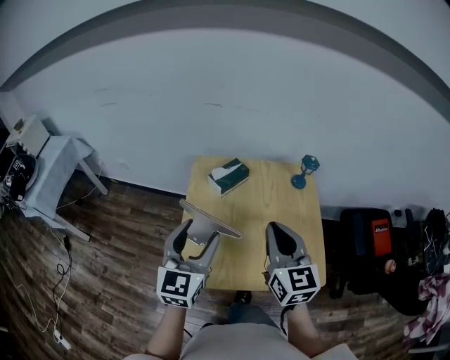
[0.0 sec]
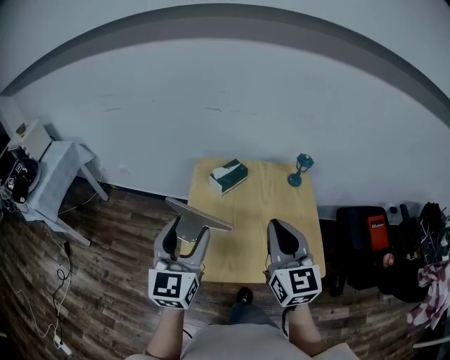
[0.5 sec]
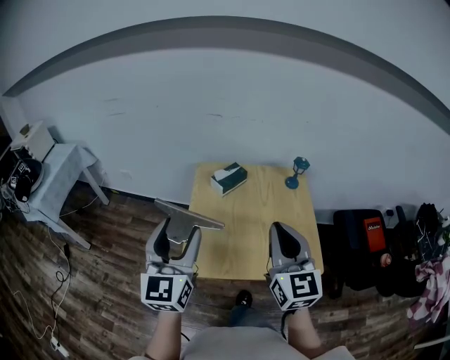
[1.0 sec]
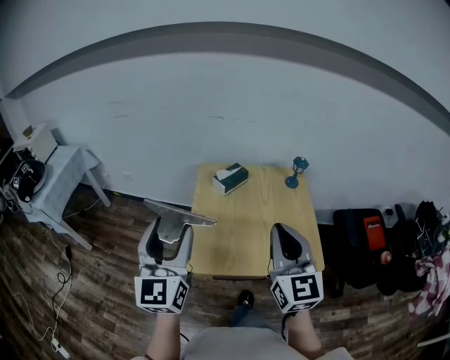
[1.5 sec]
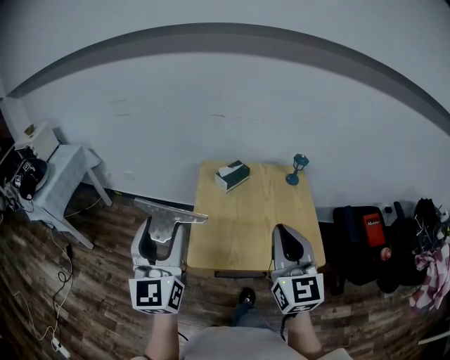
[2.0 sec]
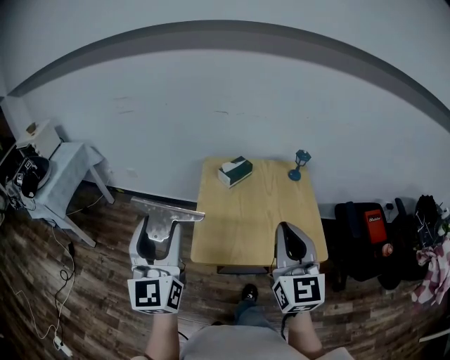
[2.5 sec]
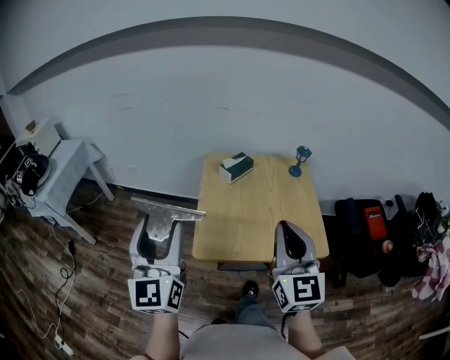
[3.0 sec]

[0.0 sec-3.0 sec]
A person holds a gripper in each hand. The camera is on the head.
0.0 sec to 1.5 sec: The right gripper goes roughly 15 cm backward and upward. The left gripper heads backward, upward and to the left, covering about 20 cm.
1.5 sec to 3.0 sec: The right gripper heads backward, covering roughly 5 cm. The left gripper moves to the left and backward, roughly 10 cm.

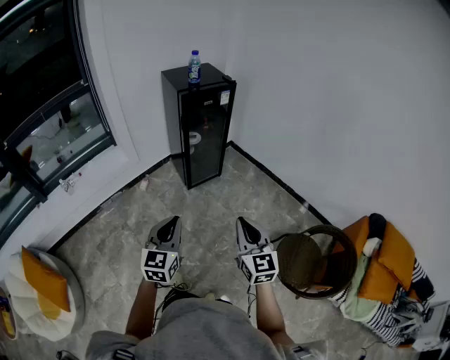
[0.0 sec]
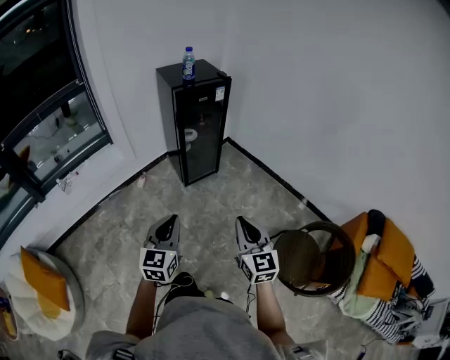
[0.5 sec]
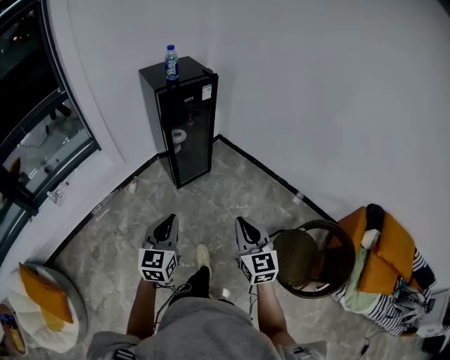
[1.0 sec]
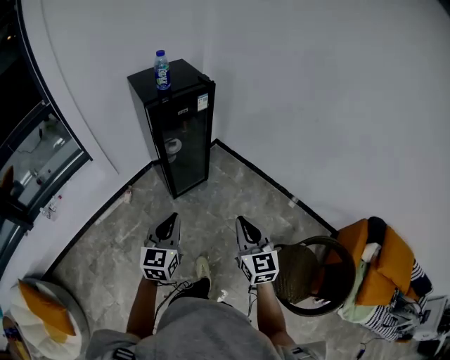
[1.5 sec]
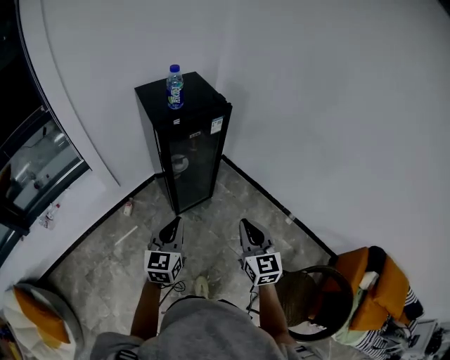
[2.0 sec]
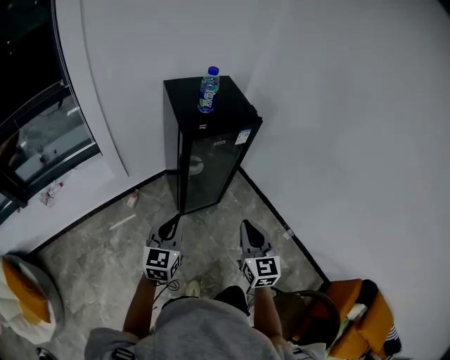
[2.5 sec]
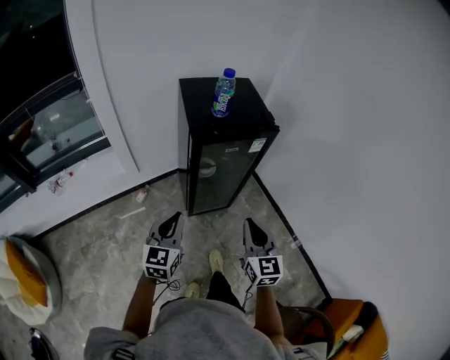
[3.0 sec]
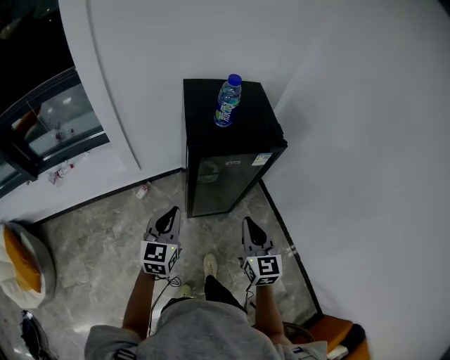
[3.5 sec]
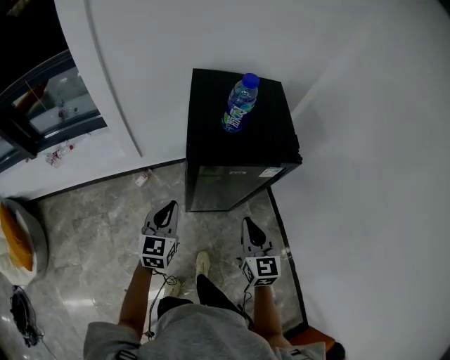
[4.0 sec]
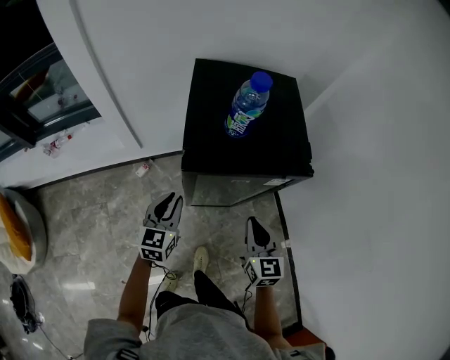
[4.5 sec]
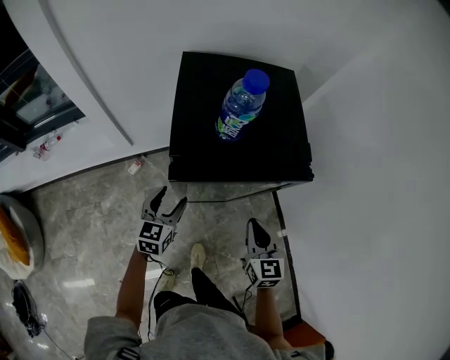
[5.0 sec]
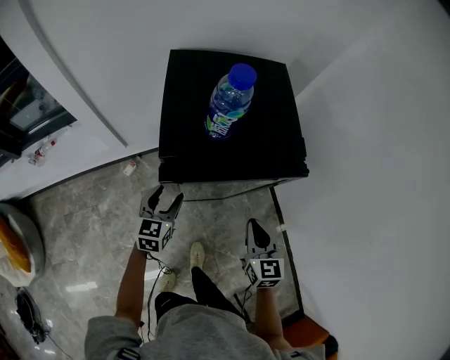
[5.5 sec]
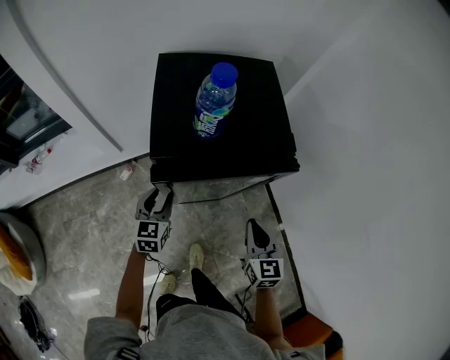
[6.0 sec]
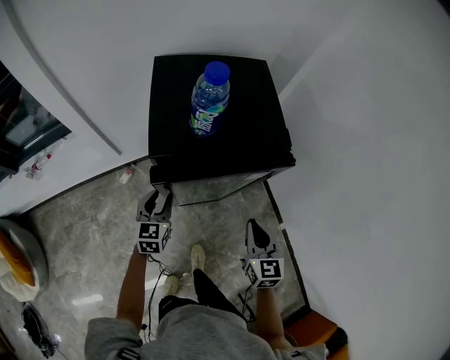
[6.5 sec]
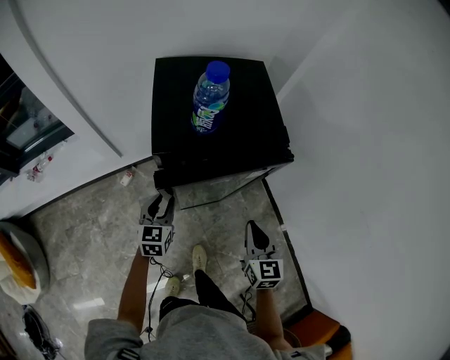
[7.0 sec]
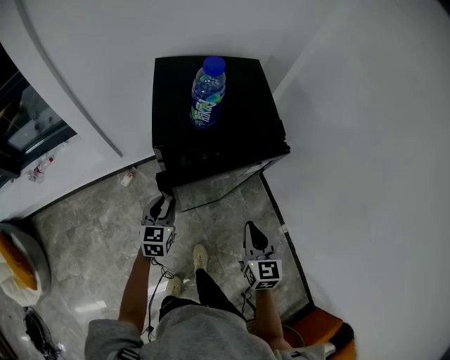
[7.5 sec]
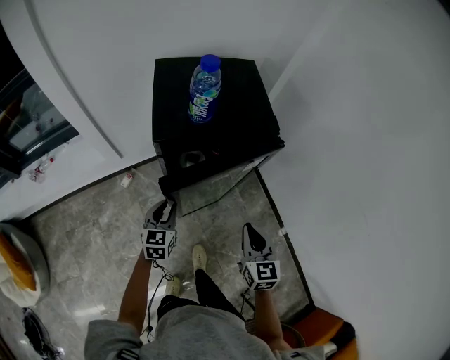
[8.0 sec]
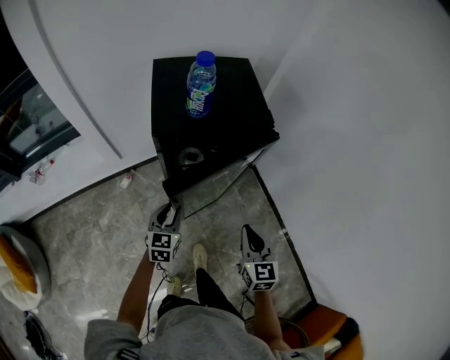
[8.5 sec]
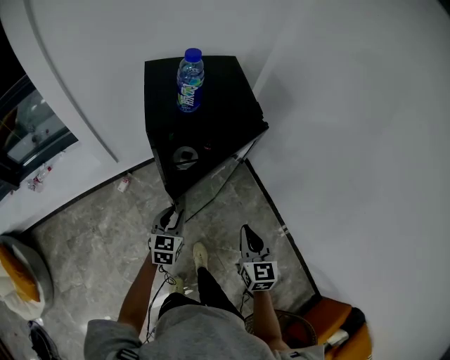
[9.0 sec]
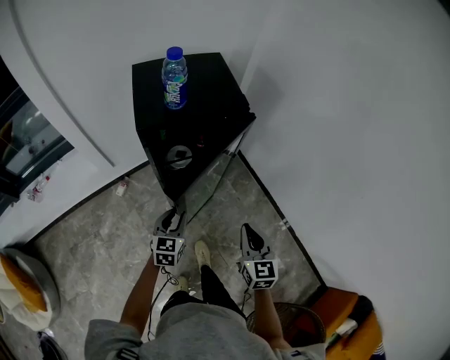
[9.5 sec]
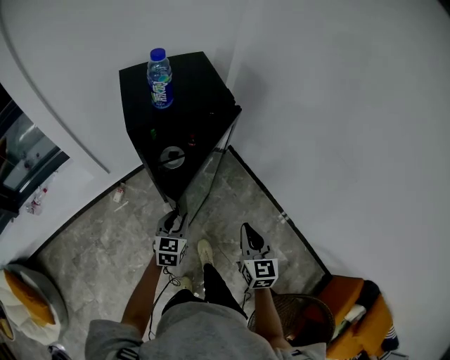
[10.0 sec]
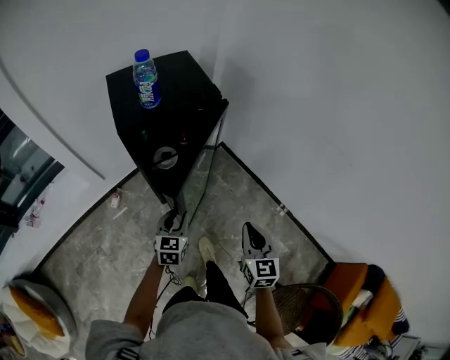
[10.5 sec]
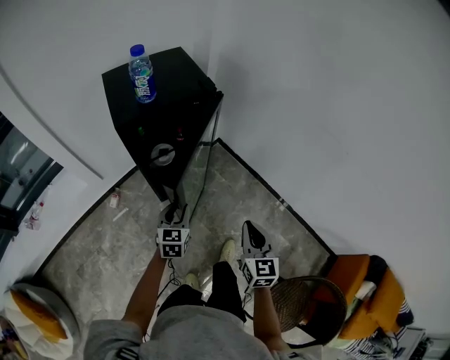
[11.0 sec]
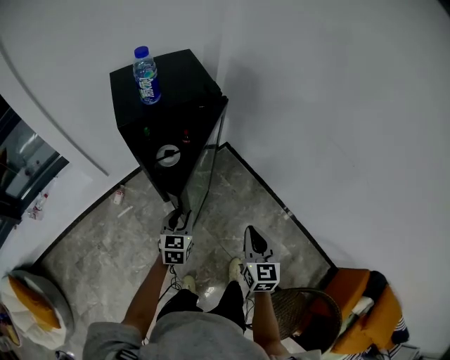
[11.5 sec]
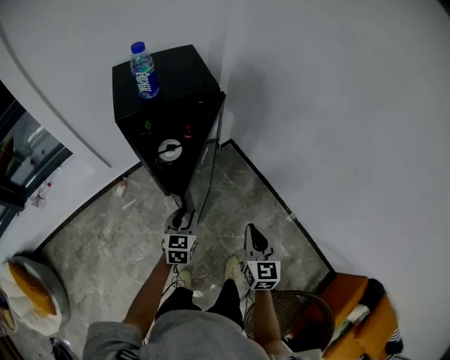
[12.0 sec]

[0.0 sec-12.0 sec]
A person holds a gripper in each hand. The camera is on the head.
0.0 sec to 2.0 sec: The grippers both shift forward by roughly 35 cm.
2.0 sec to 4.0 sec: The left gripper changes place by approximately 25 cm, and swivels about 30 degrees. The right gripper shifts by roughly 30 cm, and turns by roughly 20 degrees.
4.0 sec to 6.0 sec: The left gripper is displaced forward and downward by some 15 cm, and opens its fingers. Meanwhile the right gripper travels to the right, downward and forward by roughly 10 cm.
6.0 sec to 8.0 sec: The two grippers go about 10 cm backward.
8.0 sec to 10.0 sec: The left gripper heads backward and to the right, covering roughly 15 cm; the right gripper travels backward by some 15 cm.
10.0 sec to 12.0 sec: The two grippers go about 10 cm to the right.

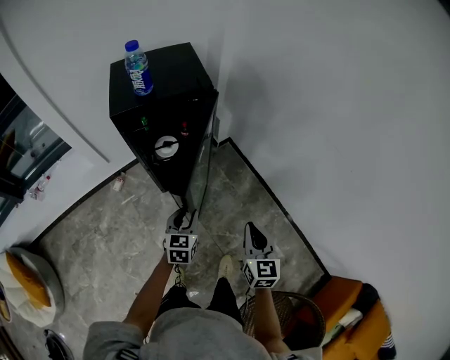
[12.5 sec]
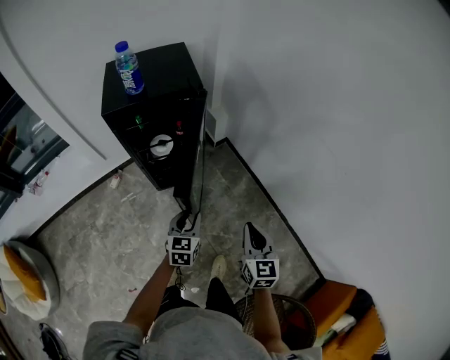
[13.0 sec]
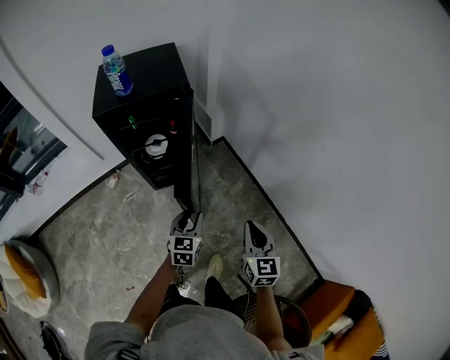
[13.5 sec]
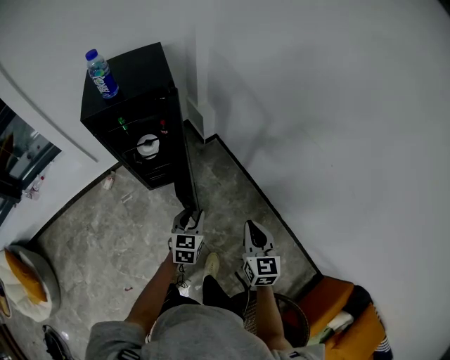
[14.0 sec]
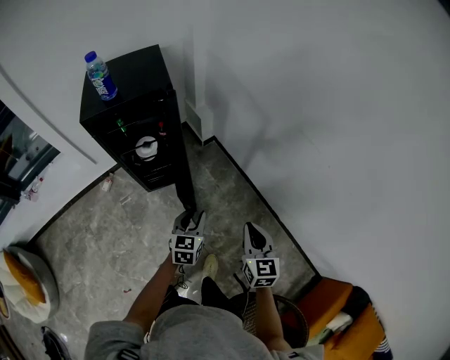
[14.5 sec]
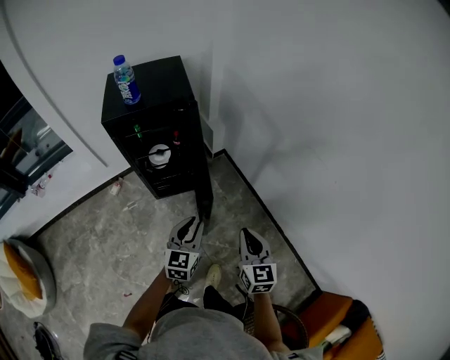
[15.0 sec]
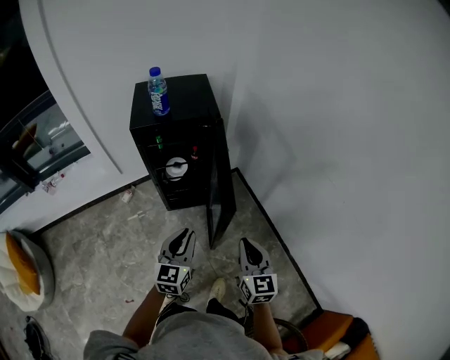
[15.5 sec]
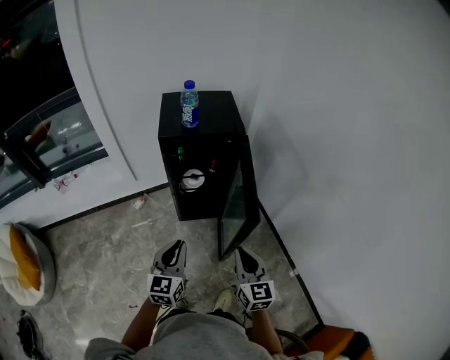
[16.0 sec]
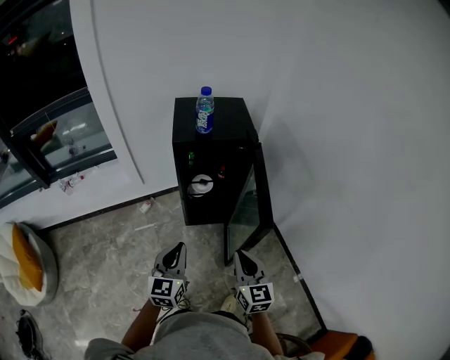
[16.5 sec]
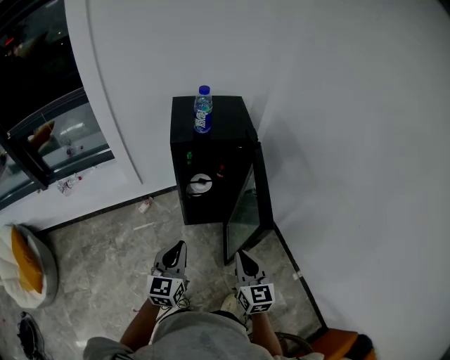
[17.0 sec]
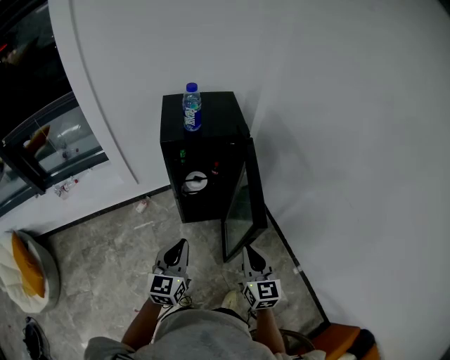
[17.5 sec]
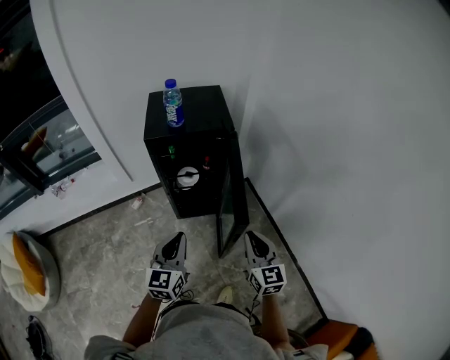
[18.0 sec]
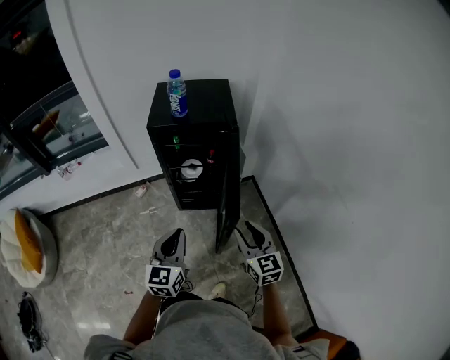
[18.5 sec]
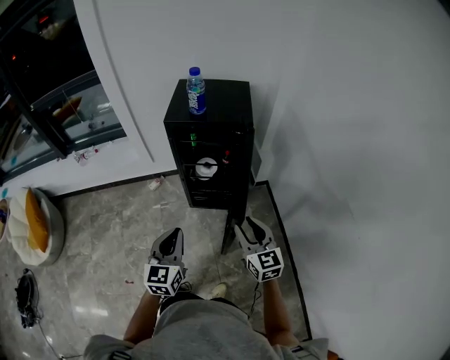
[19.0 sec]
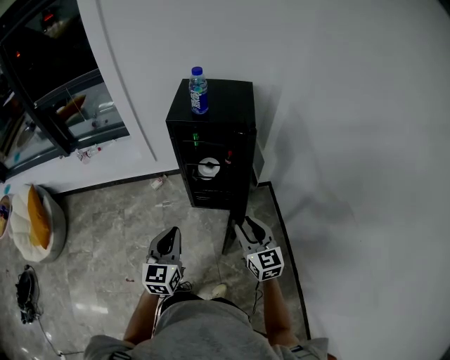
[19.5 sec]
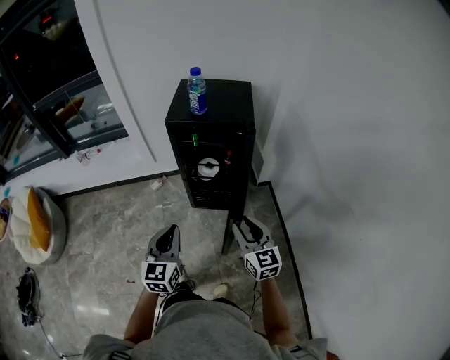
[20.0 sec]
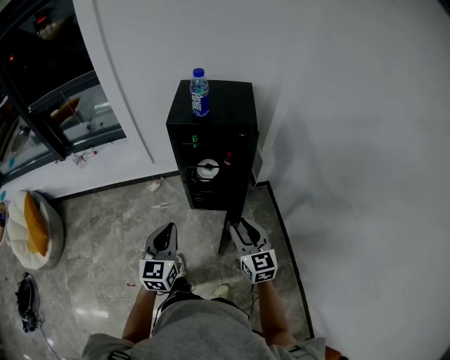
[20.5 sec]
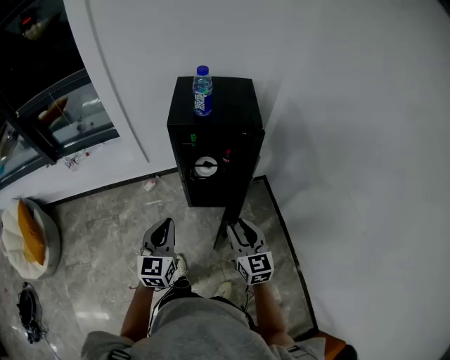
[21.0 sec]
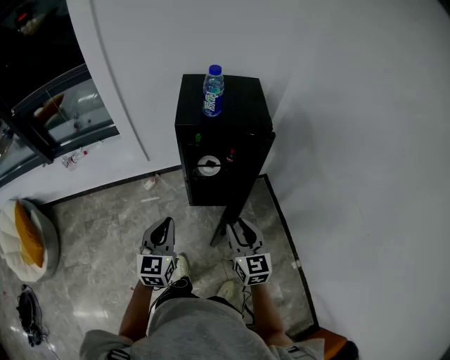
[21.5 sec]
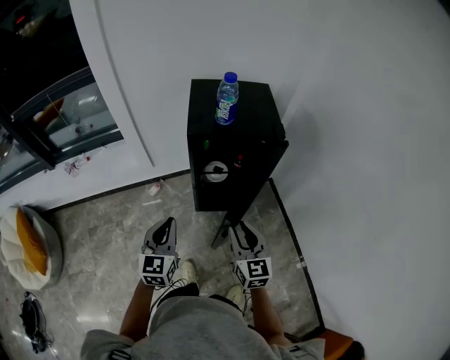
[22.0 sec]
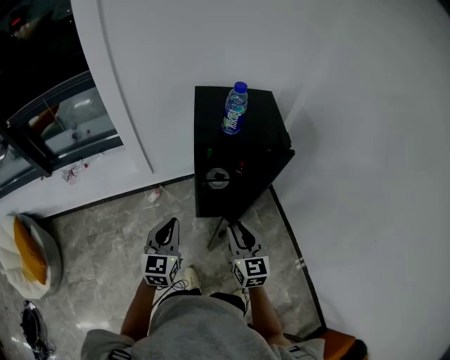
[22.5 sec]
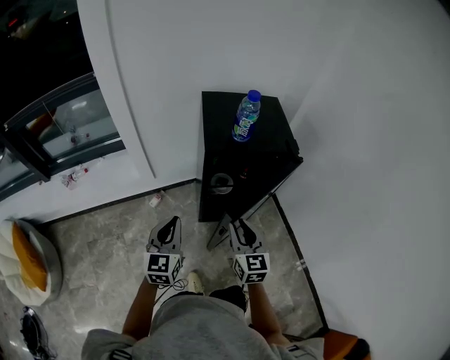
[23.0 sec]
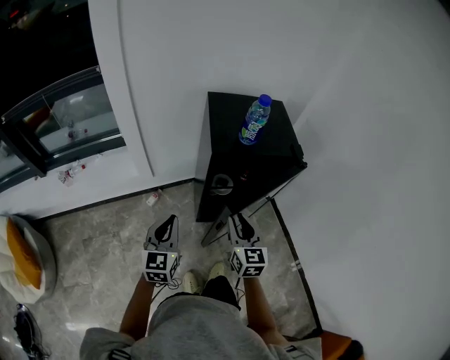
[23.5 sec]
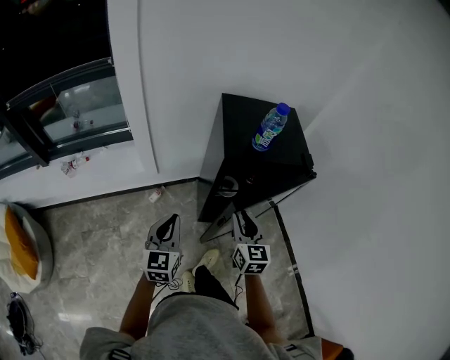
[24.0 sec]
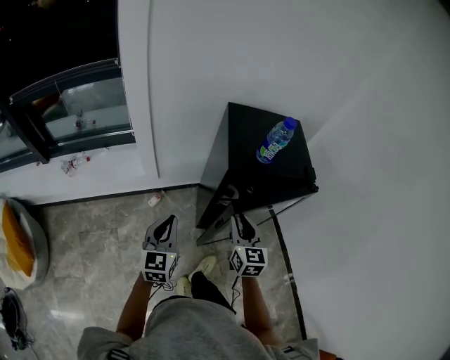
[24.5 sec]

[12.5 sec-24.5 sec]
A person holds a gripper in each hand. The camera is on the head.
12.5 sec to 14.5 sec: The grippers both shift to the right by roughly 15 cm.
14.5 sec to 16.5 sec: The right gripper heads to the left, covering some 25 cm, and rotates approximately 20 degrees. The left gripper is displaced to the left and upward by about 35 cm, rotates approximately 30 degrees, and closes.
16.5 sec to 18.5 sec: The right gripper goes about 15 cm to the right and forward, and opens its fingers; the left gripper shifts some 10 cm to the right.
18.5 sec to 20.5 sec: The right gripper ends up some 5 cm from where it was; the left gripper goes roughly 5 cm to the left.
20.5 sec to 22.5 sec: Both grippers move to the left and forward, about 20 cm.
22.5 sec to 24.5 sec: The right gripper travels forward and to the left by some 15 cm. The left gripper shifts roughly 15 cm to the left and forward.
